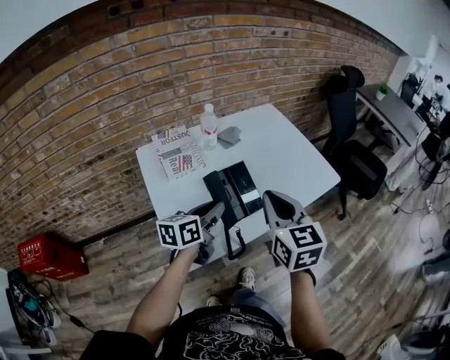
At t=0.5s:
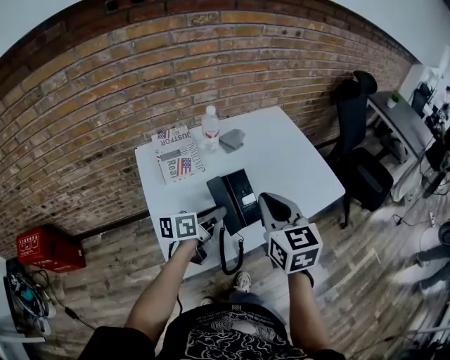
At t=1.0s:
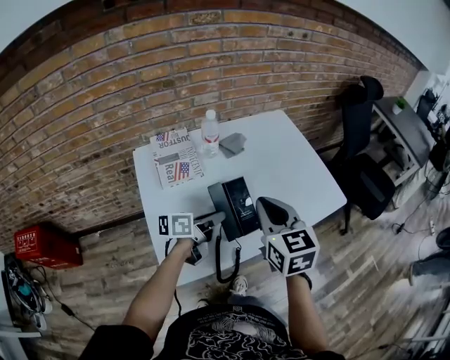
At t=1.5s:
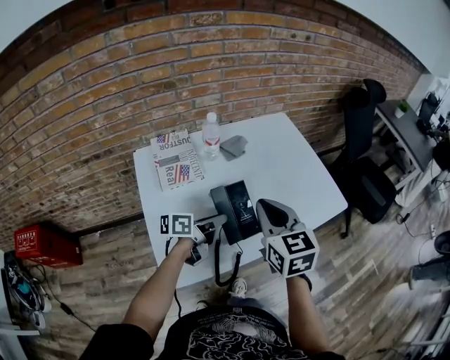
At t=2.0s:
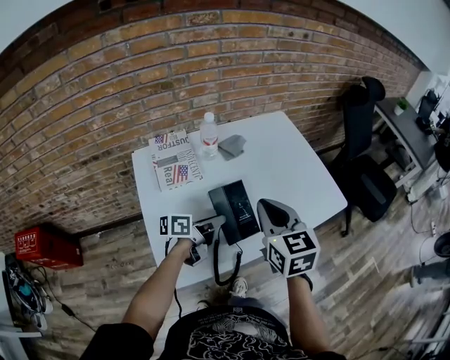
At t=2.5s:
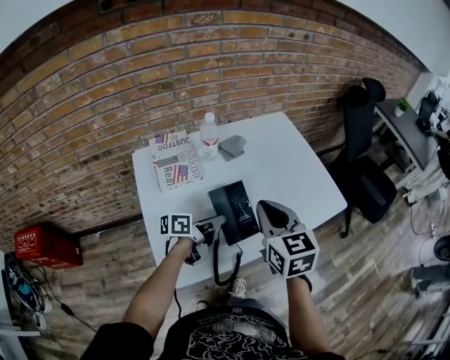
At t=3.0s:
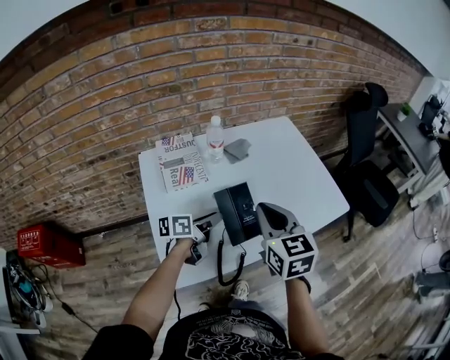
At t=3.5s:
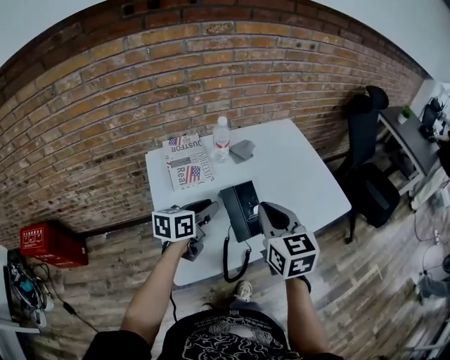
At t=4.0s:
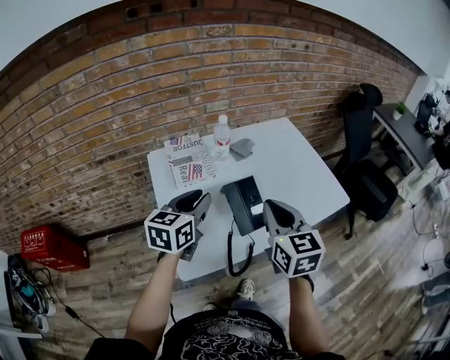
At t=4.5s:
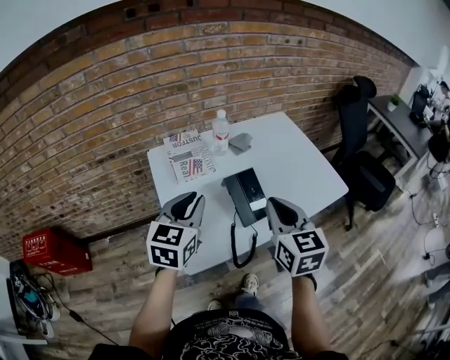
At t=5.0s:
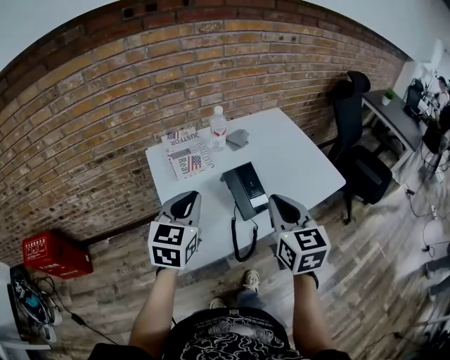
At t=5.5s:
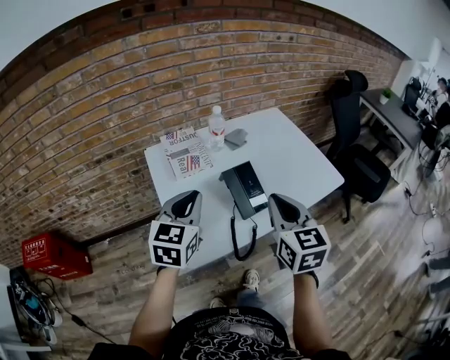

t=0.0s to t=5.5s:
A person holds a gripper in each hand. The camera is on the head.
t=0.0s to t=2.0s: The left gripper goes approximately 10 cm downward and forward, and rotates some 30 degrees. The right gripper heads forward, covering some 10 cm.
t=2.0s to t=3.5s: The left gripper is displaced upward and to the left by approximately 10 cm, and rotates some 30 degrees.
t=3.5s to t=5.5s: The left gripper goes approximately 15 cm upward and backward, and changes its angle by roughly 40 degrees. Meanwhile the right gripper is displaced backward by some 10 cm.

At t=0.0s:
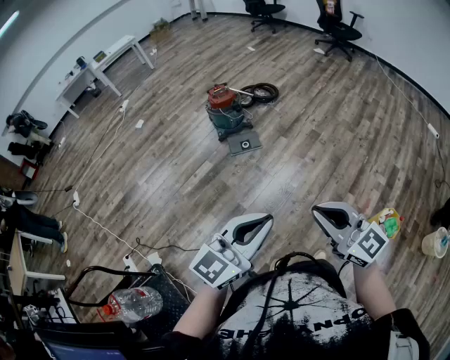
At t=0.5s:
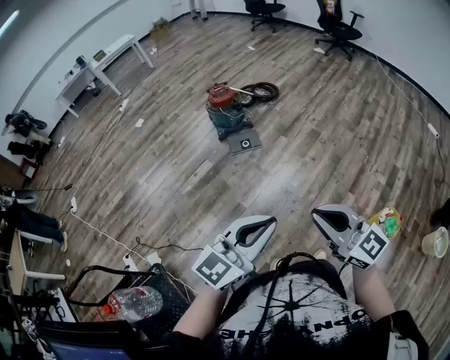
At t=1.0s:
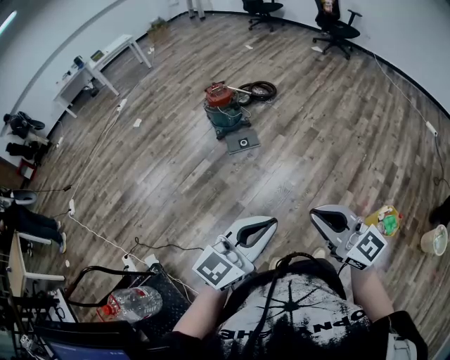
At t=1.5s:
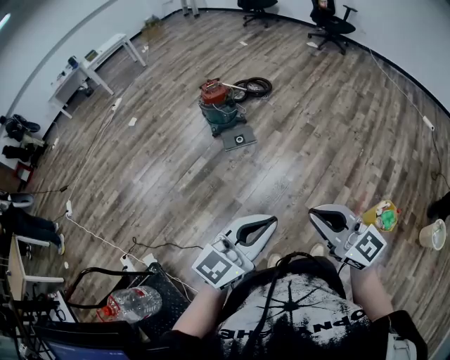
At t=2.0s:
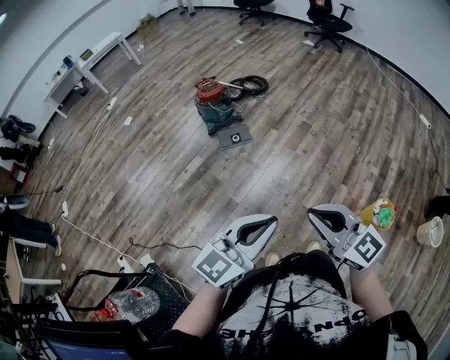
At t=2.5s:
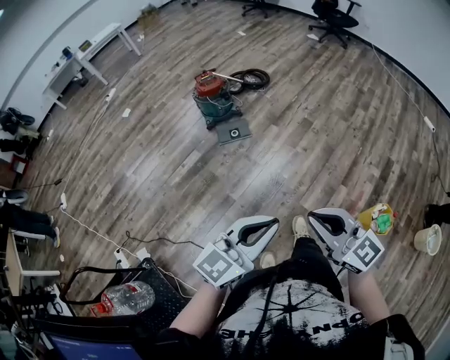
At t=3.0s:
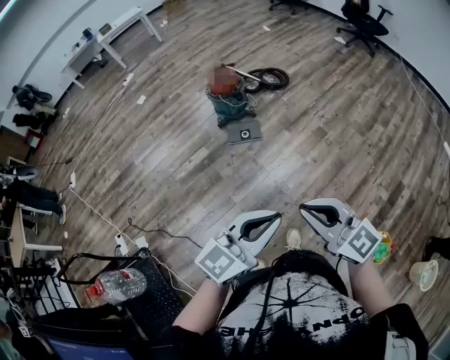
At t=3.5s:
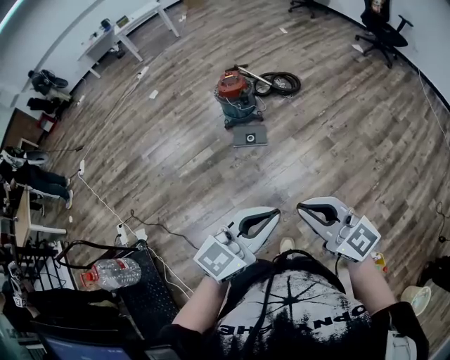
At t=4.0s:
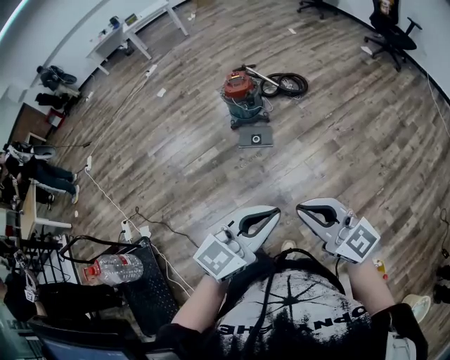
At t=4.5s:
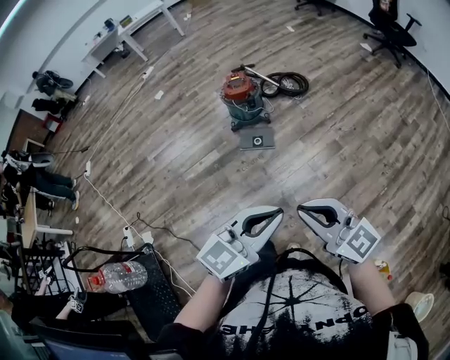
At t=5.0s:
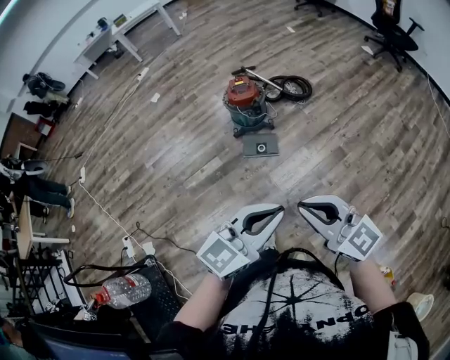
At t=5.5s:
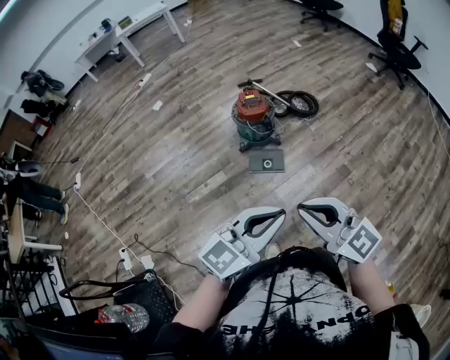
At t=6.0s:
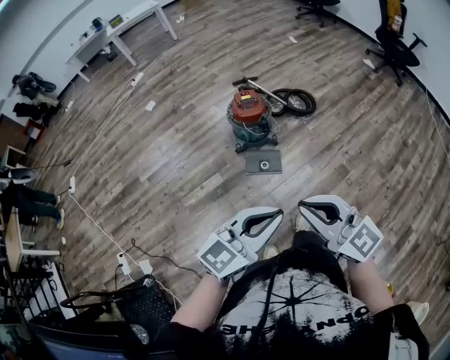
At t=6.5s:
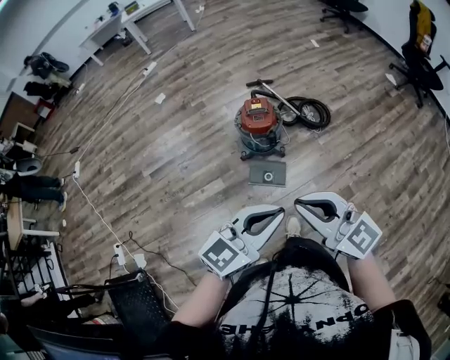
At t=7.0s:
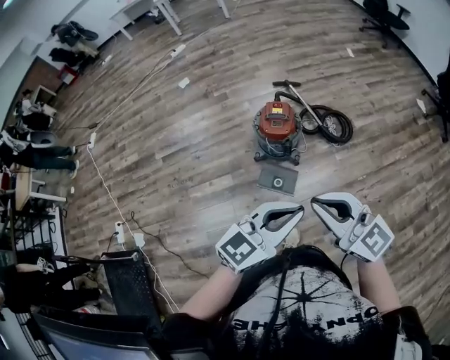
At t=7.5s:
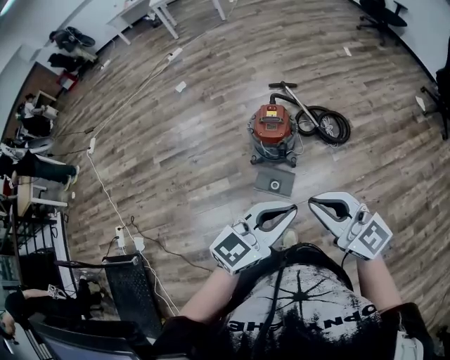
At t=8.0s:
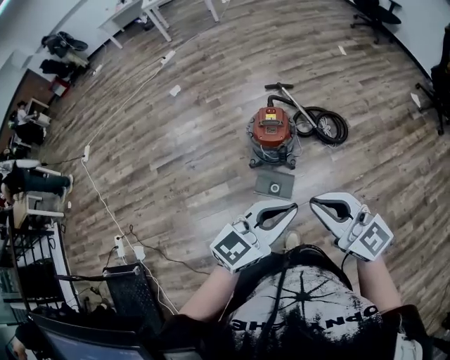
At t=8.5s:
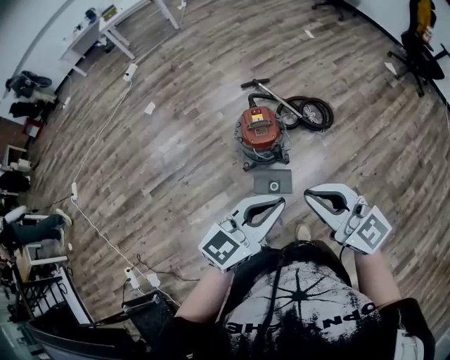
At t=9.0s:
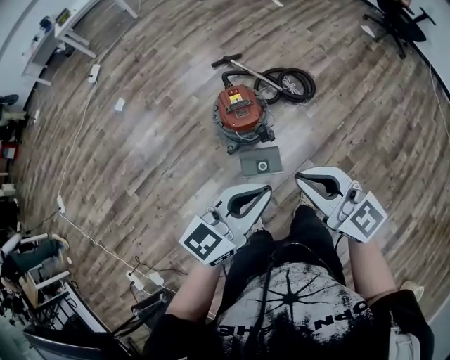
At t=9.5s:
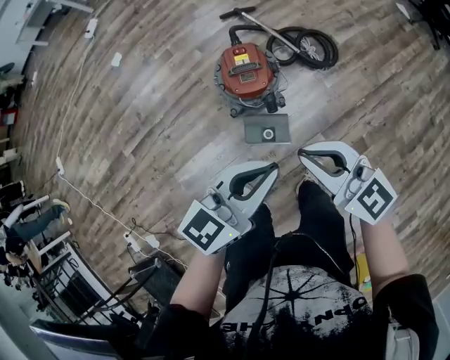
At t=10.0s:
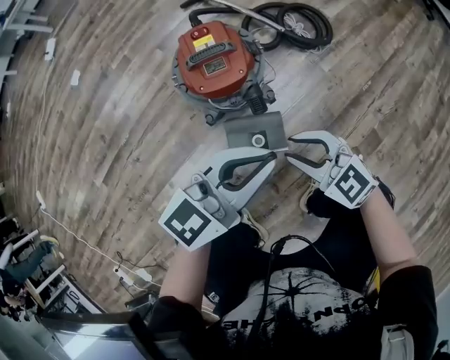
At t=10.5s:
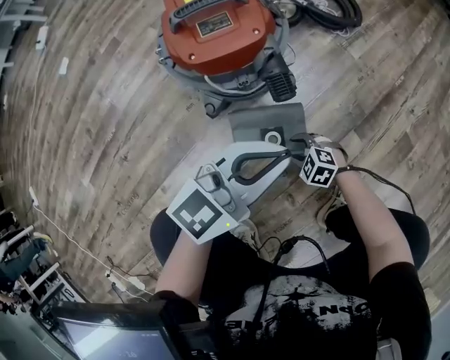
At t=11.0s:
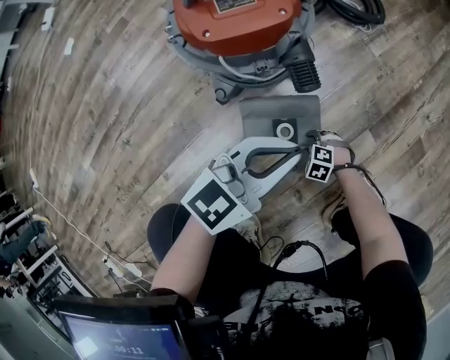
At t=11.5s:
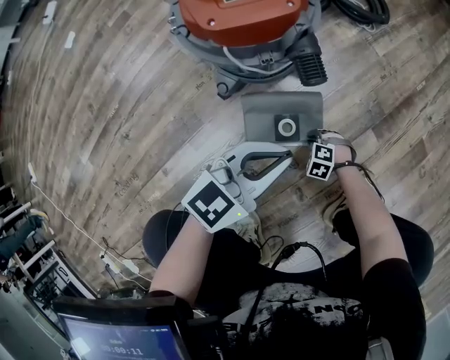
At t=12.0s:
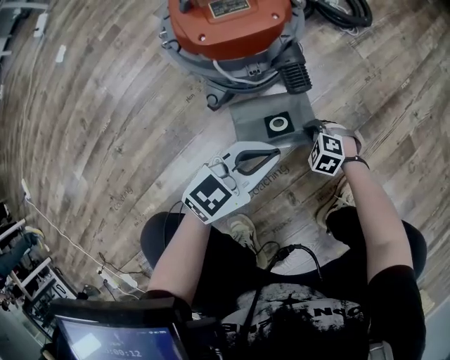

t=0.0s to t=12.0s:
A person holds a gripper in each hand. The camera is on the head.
t=0.0s to t=2.0s: The grippers make only small movements.
t=2.0s to t=4.0s: Both grippers travel together forward and to the right, some 30 cm. The right gripper turns by some 30 degrees.
t=4.0s to t=6.0s: Both grippers move forward and to the left, some 30 cm.
t=6.0s to t=8.0s: The left gripper moves forward and to the right, some 30 cm, while the right gripper shifts about 25 cm forward.
t=8.0s to t=10.0s: The left gripper travels downward and forward by some 40 cm, and turns by approximately 20 degrees. Meanwhile the right gripper heads downward, covering some 50 cm, turns by about 30 degrees, and opens up.
t=10.0s to t=12.0s: The two grippers go about 40 cm downward. The right gripper angles its fingers downward, by roughly 40 degrees, and closes.

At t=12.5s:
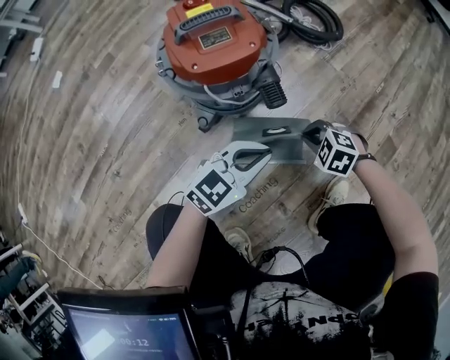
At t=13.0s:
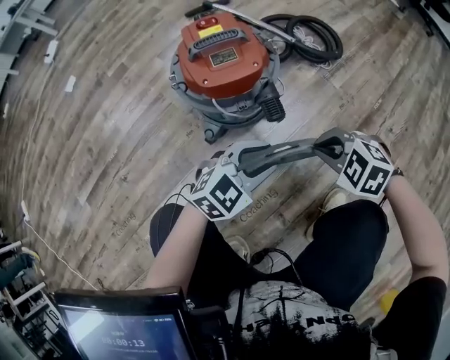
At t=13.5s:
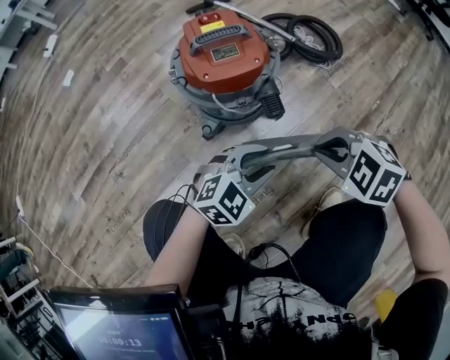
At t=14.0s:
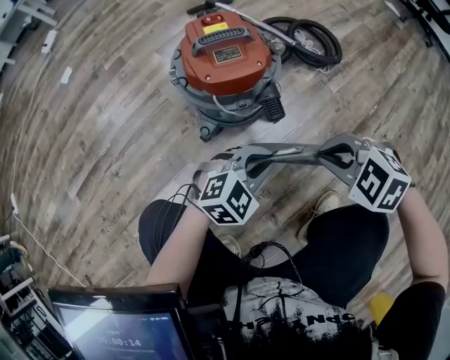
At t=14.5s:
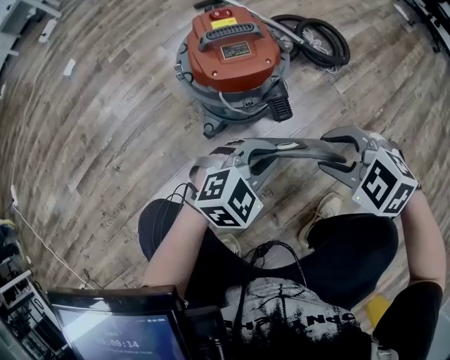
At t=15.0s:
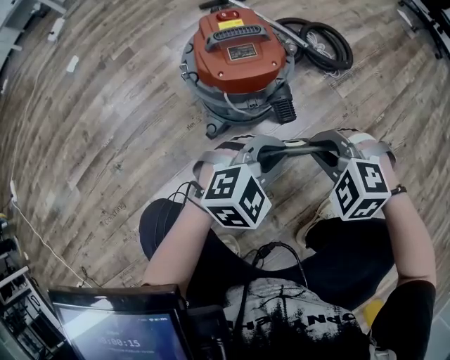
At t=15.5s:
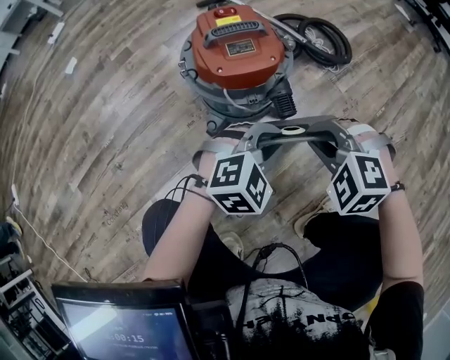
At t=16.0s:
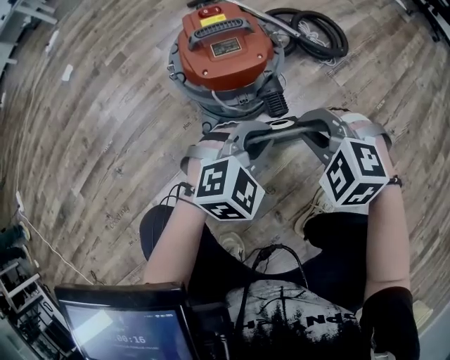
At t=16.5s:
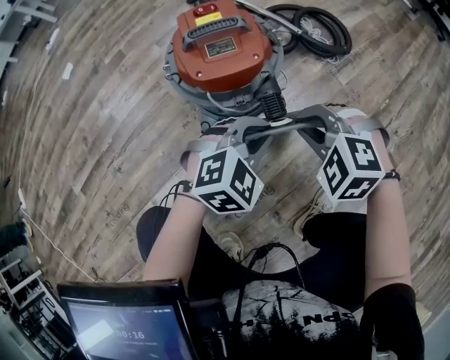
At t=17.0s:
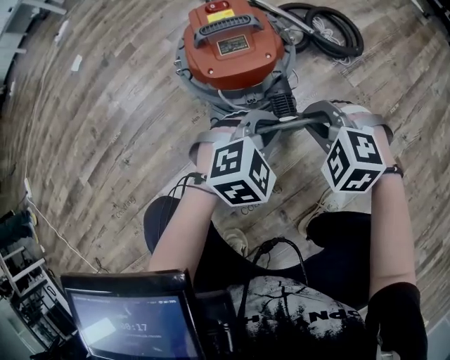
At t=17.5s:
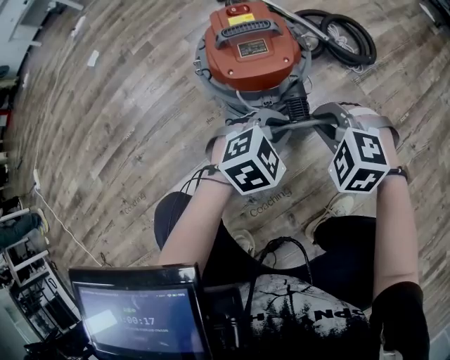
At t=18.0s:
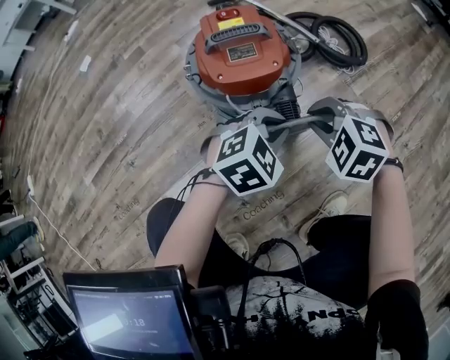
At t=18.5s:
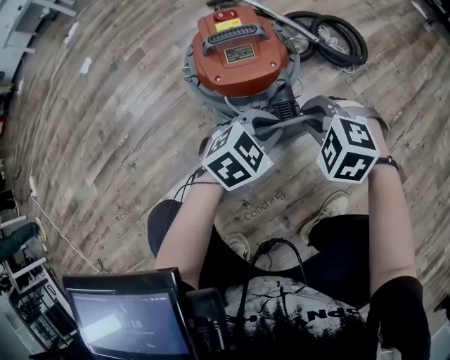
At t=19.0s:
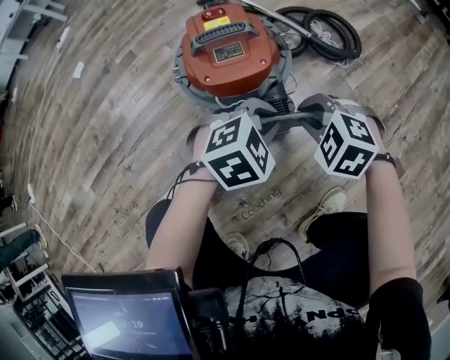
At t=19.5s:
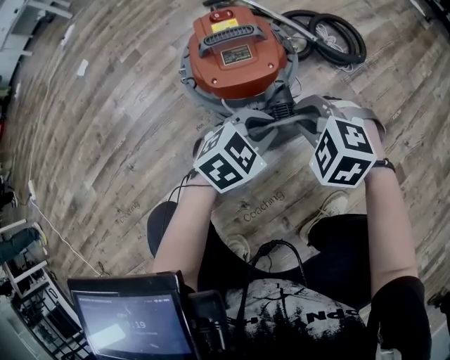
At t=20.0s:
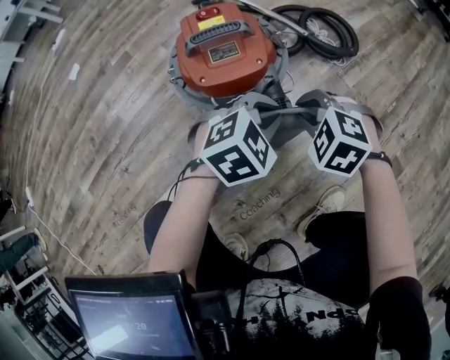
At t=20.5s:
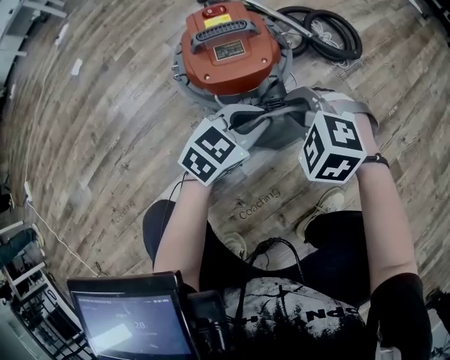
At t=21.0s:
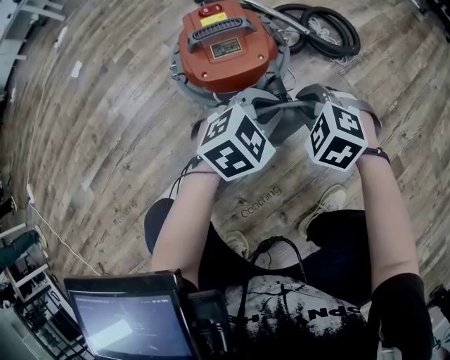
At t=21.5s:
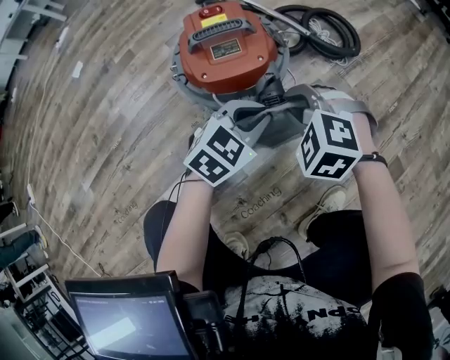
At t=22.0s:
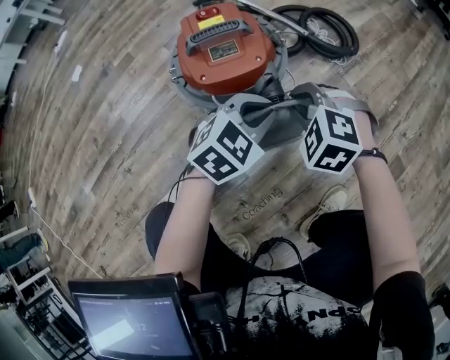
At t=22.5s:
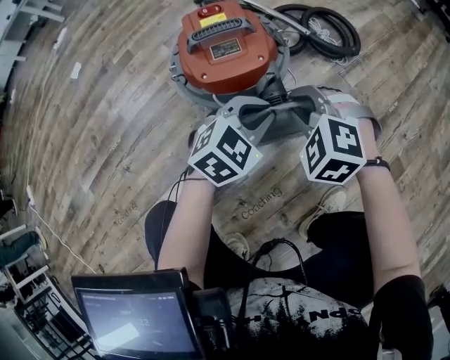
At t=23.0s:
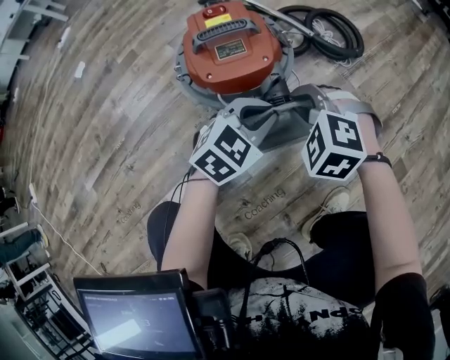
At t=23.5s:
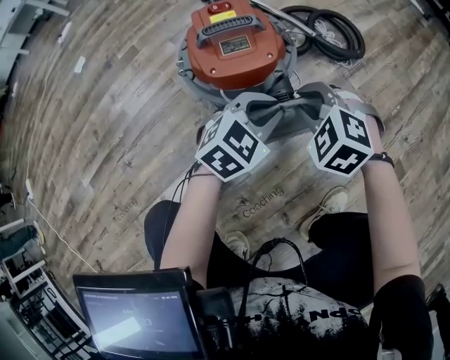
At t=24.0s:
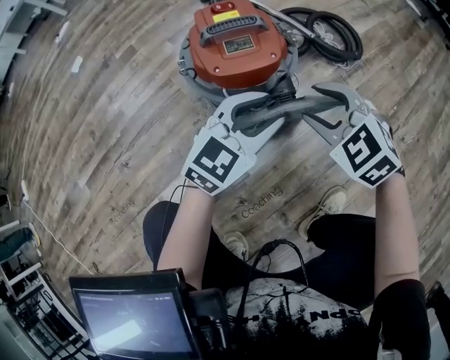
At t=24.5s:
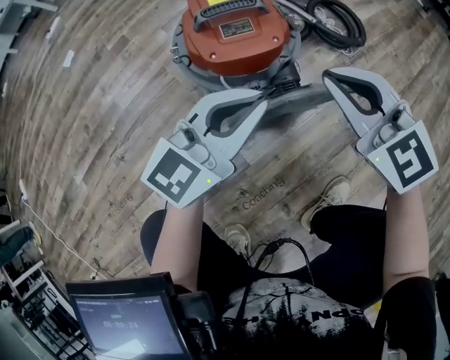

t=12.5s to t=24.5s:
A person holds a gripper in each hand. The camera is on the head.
t=12.5s to t=14.5s: The right gripper goes roughly 20 cm upward, and opens up, while the left gripper is displaced upward by some 5 cm, rotates approximately 30 degrees, and opens, then closes once more.
t=14.5s to t=16.5s: The left gripper shifts by approximately 5 cm, while the right gripper ends up about 10 cm from where it was, and closes.
t=16.5s to t=18.5s: There are only small adjustments of the grippers.
t=18.5s to t=20.5s: The grippers stay close to where they were, moving slightly.
t=22.5s to t=24.5s: Both grippers move upward, some 10 cm. The left gripper tips its fingers upward by roughly 40 degrees, and opens and closes again; the right gripper angles its fingers upward, by approximately 30 degrees, and opens, then closes once more.